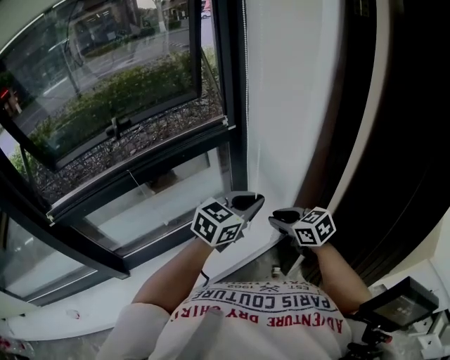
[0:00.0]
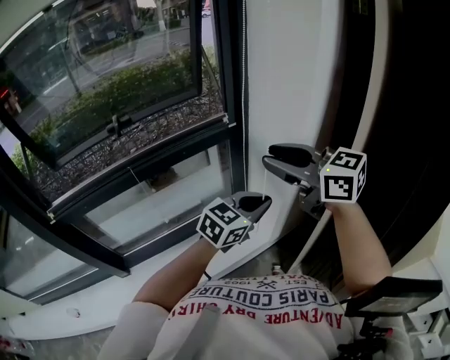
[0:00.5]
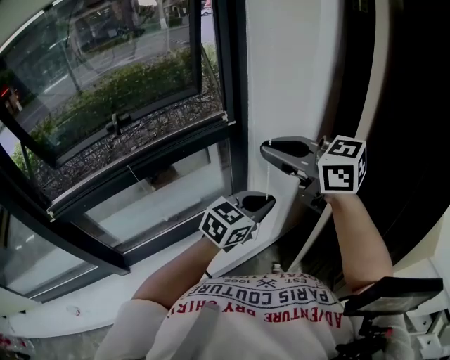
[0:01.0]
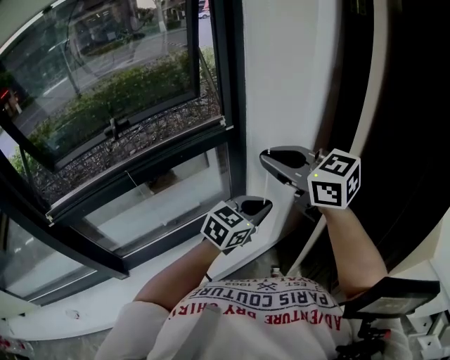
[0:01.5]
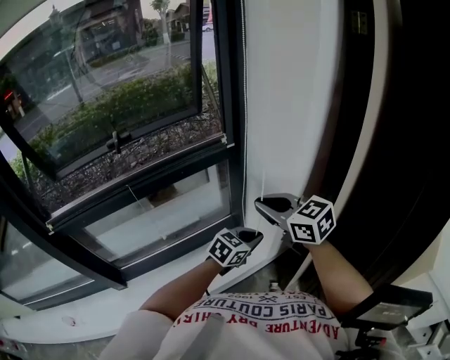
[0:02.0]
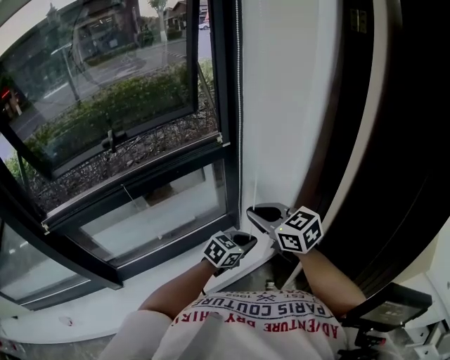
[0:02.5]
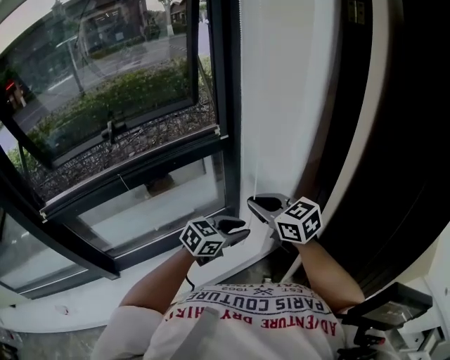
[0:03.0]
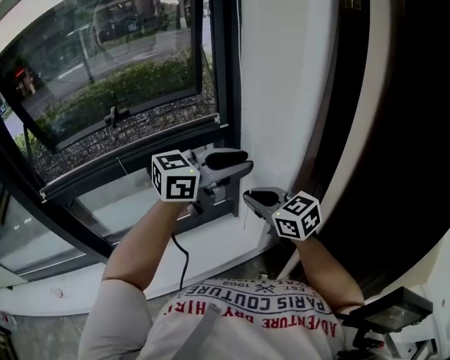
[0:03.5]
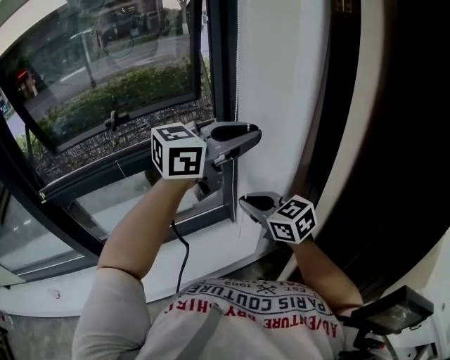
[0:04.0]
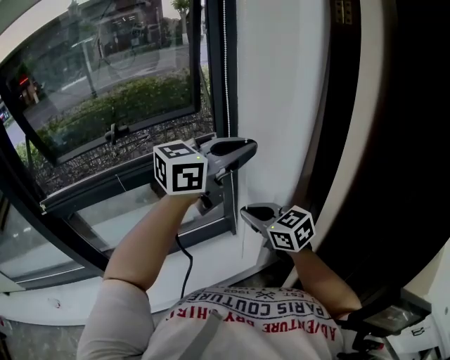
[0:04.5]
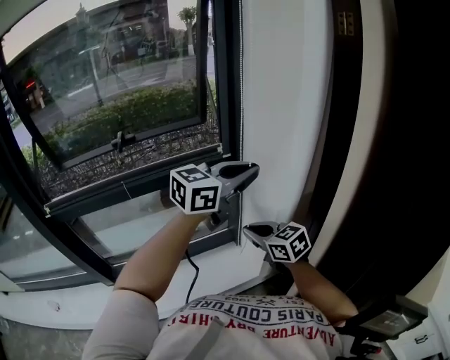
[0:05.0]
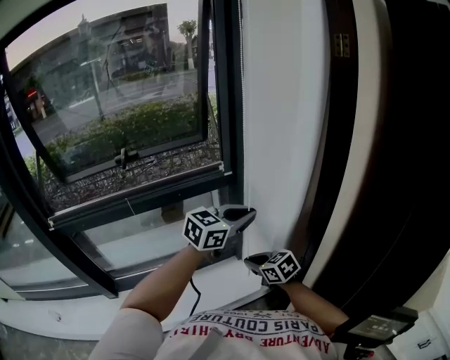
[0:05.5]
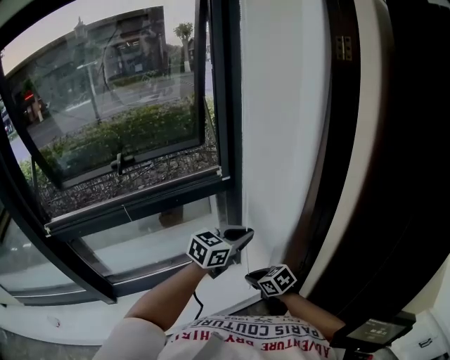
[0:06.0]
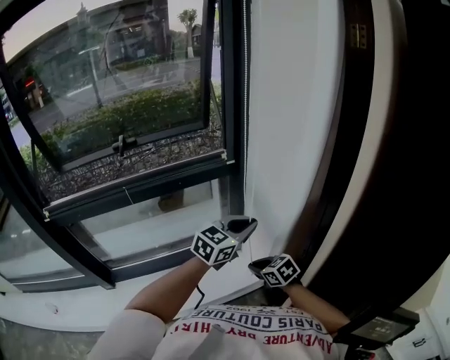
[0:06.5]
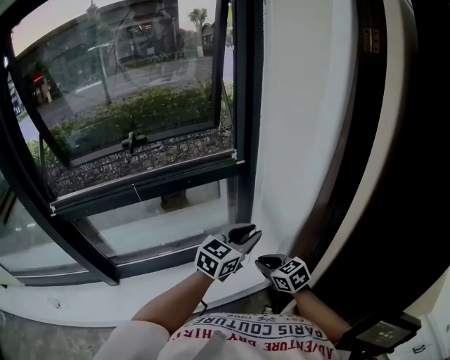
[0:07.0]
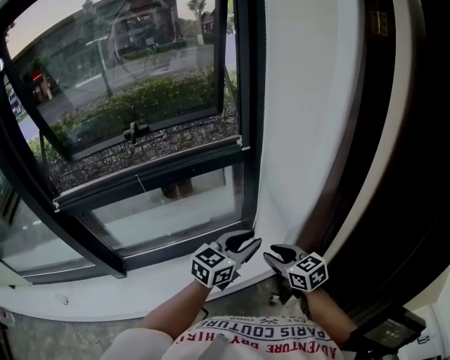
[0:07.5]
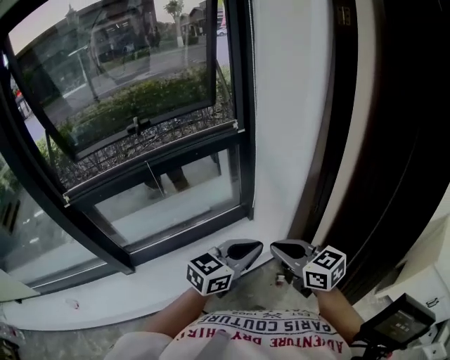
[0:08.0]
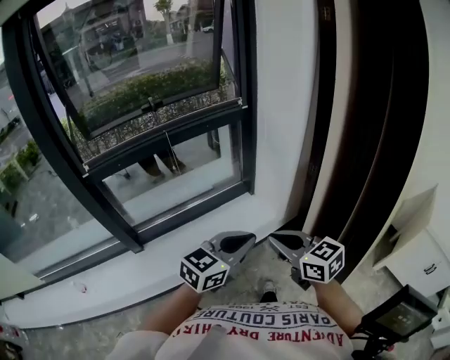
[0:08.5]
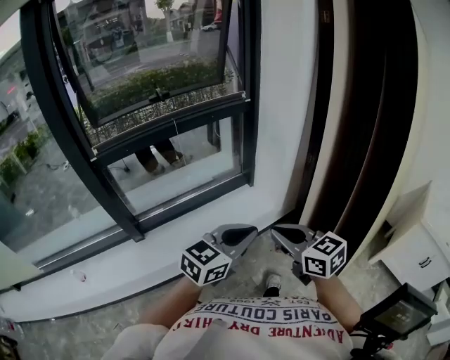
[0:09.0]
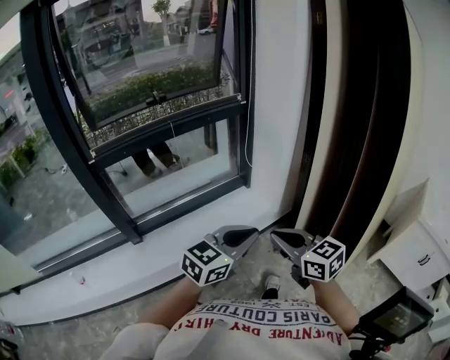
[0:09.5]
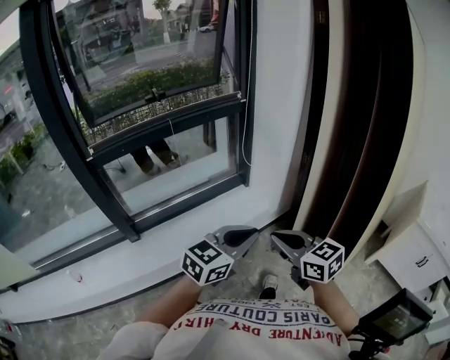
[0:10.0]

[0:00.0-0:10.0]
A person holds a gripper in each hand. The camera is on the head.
0:00.0 to 0:02.0: The left gripper goes approximately 10 cm downward, while the right gripper moves upward, approximately 15 cm.
0:02.0 to 0:04.0: The left gripper shifts approximately 35 cm upward, and tips its fingers upward by approximately 30 degrees.
0:04.0 to 0:06.0: Both grippers move downward, approximately 20 cm. The right gripper swivels roughly 30 degrees.
0:06.0 to 0:08.0: The left gripper goes some 25 cm backward, and opens, then closes again, while the right gripper moves upward and backward, approximately 25 cm, swivels about 30 degrees, and opens and closes again.
0:08.0 to 0:10.0: Both grippers move backward, about 25 cm.

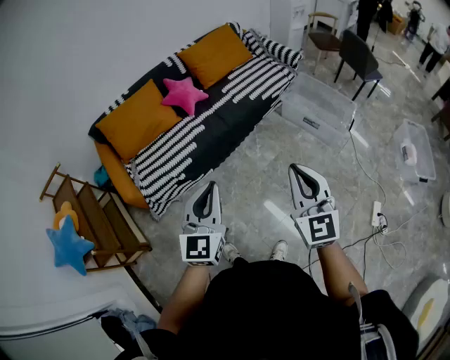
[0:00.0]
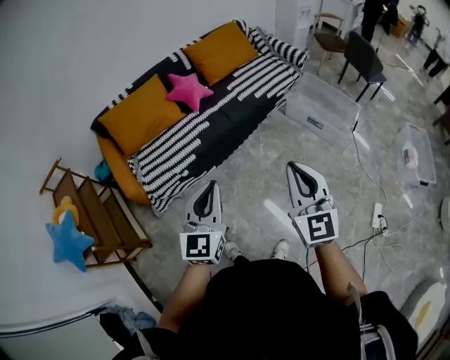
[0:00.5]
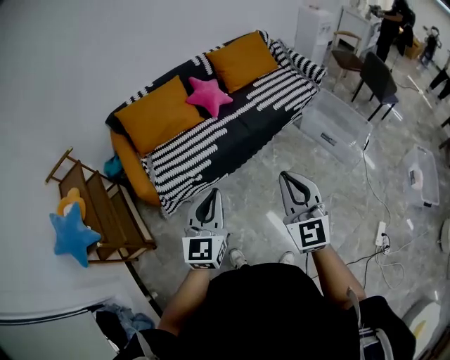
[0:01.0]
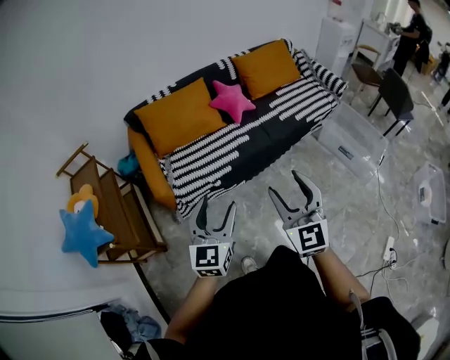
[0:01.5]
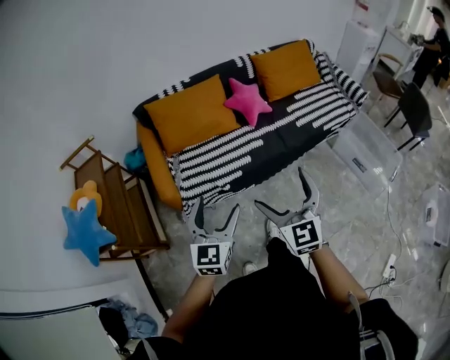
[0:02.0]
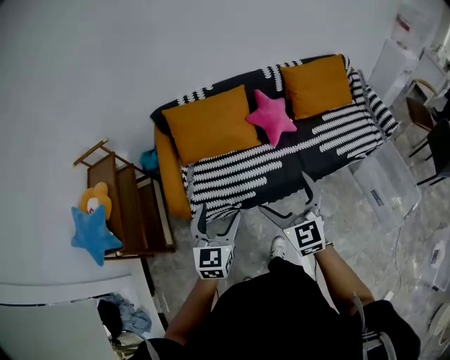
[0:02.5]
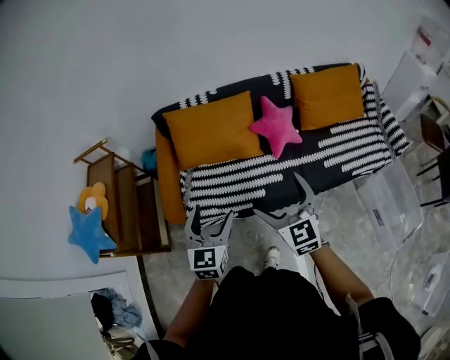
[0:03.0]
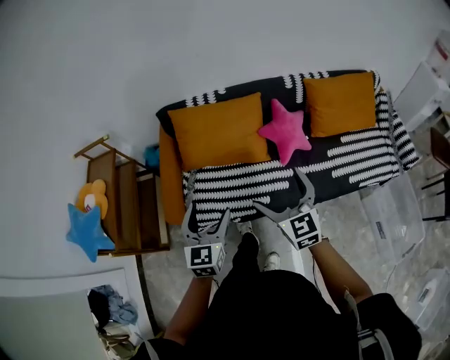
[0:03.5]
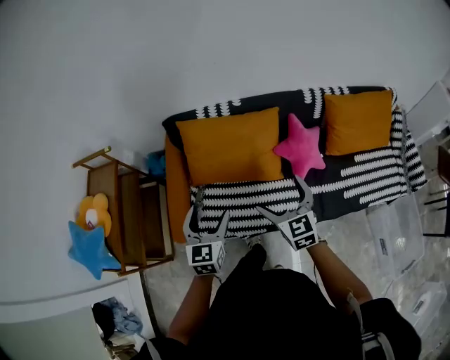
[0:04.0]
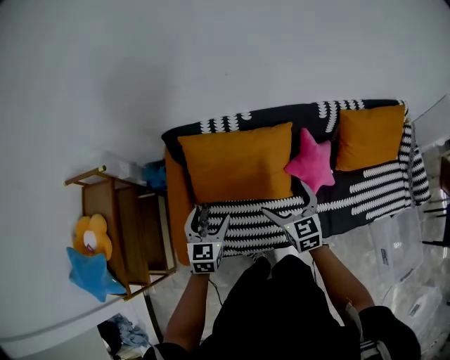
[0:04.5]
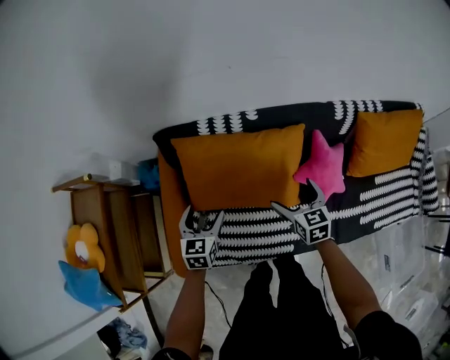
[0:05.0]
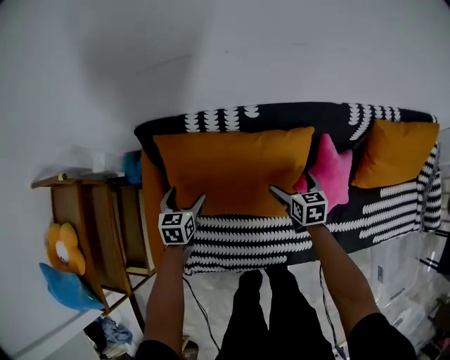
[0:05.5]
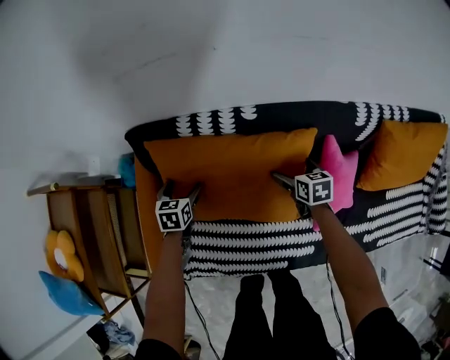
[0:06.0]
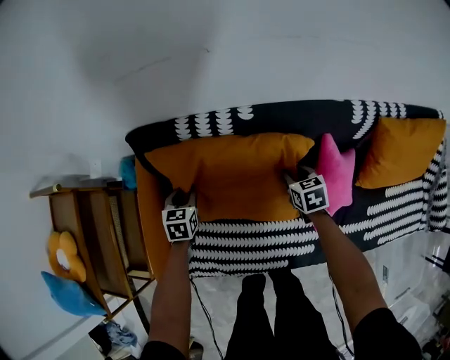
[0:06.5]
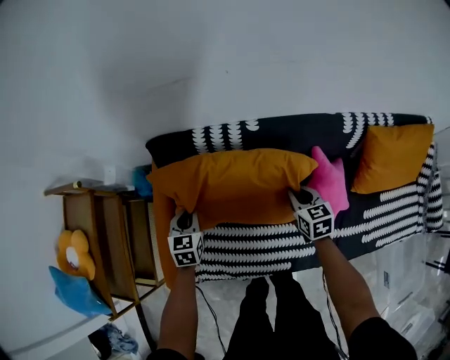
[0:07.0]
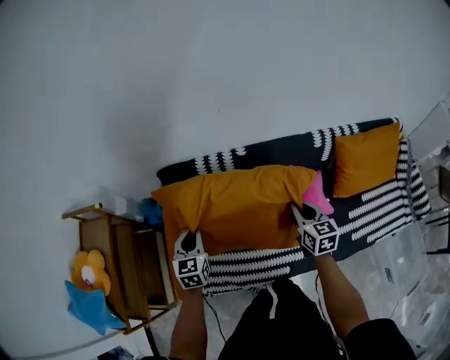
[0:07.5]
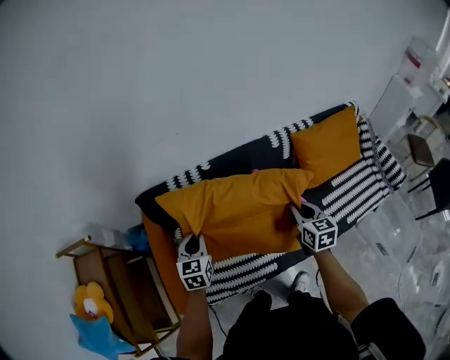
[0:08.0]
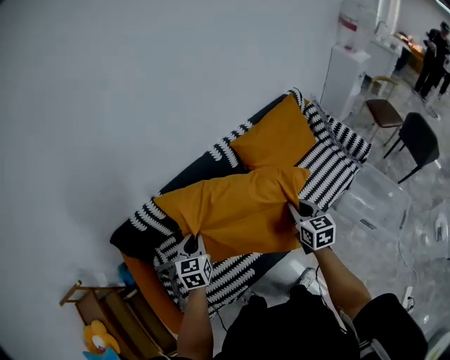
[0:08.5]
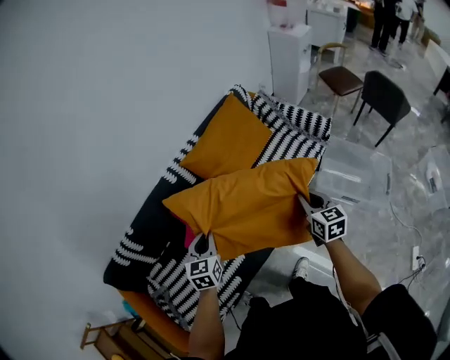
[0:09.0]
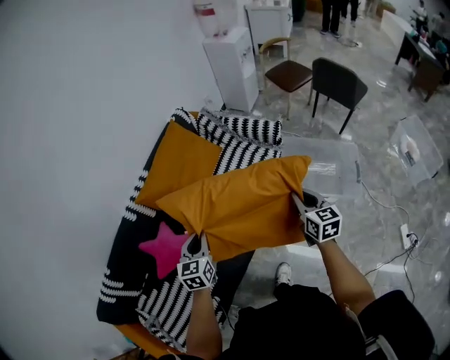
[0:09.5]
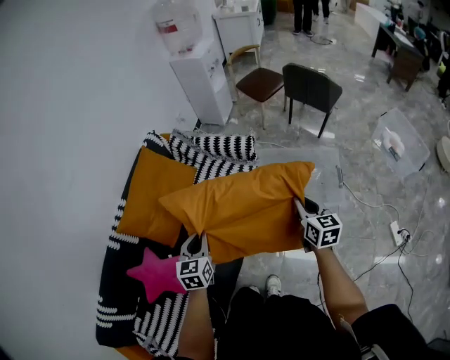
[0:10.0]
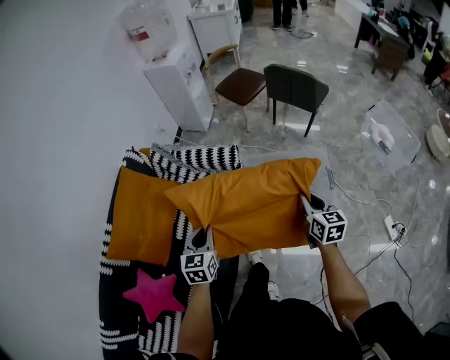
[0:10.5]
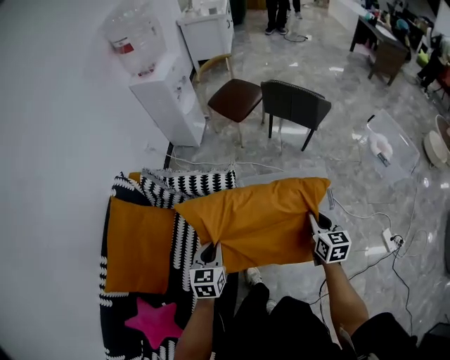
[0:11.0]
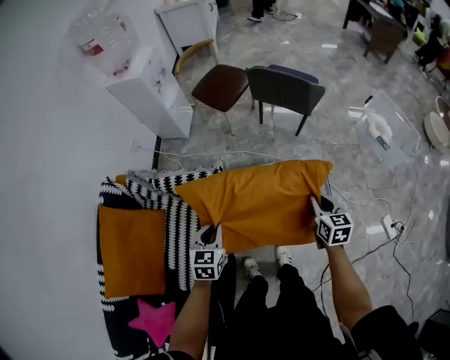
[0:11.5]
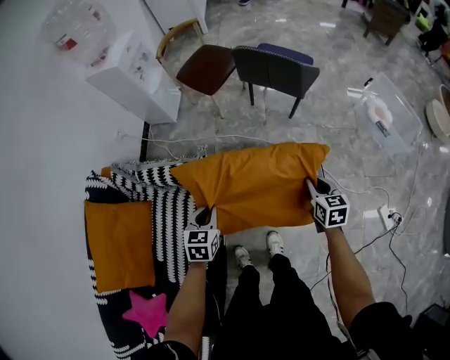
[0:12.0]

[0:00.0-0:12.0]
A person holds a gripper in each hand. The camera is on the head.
0:00.0 to 0:02.0: Both grippers travel together to the left and forward, roughly 30 cm. The right gripper turns by some 20 degrees, and opens its fingers. The left gripper opens its fingers.
0:02.0 to 0:04.0: Both grippers are carried forward, roughly 50 cm. The left gripper changes its angle by about 30 degrees, while the right gripper changes its angle by roughly 30 degrees.
0:04.0 to 0:06.0: Both grippers are carried forward, about 40 cm. Both grippers move downward, some 40 cm. The left gripper changes its angle by about 30 degrees, while the right gripper swivels roughly 40 degrees.
0:06.0 to 0:08.0: The two grippers go roughly 40 cm upward and backward. The left gripper rotates approximately 30 degrees, and closes up, while the right gripper rotates some 30 degrees, and closes.
0:08.0 to 0:10.0: The pair of grippers is taken roughly 90 cm. The left gripper swivels approximately 50 degrees, while the right gripper swivels approximately 60 degrees.
0:10.0 to 0:12.0: The two grippers travel together, forward and to the right, some 50 cm. The left gripper turns by roughly 30 degrees. Meanwhile the right gripper travels downward by approximately 15 cm, and rotates roughly 20 degrees.

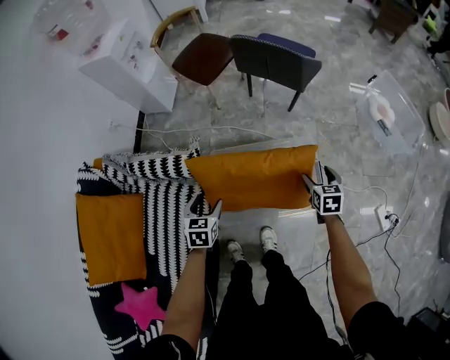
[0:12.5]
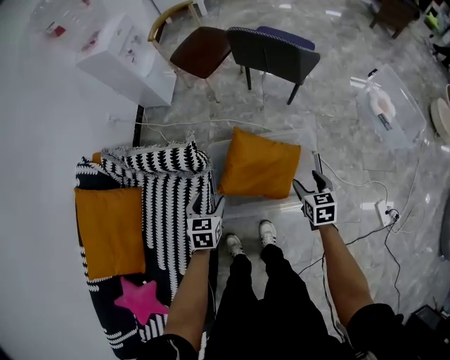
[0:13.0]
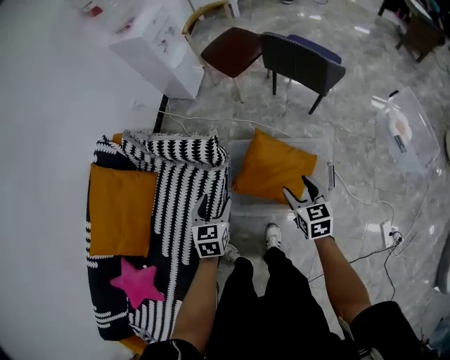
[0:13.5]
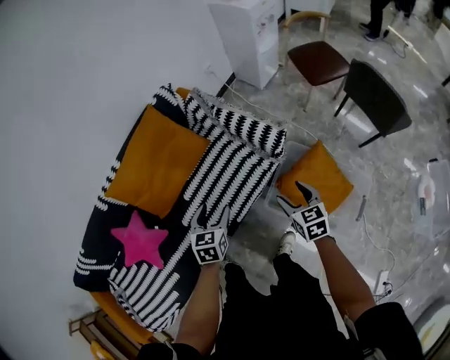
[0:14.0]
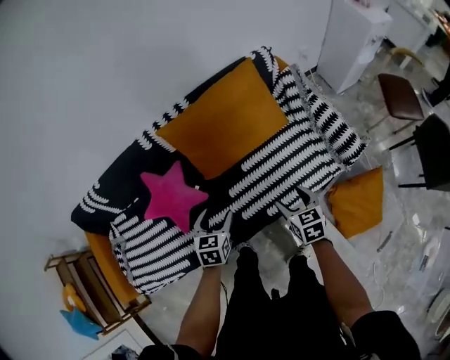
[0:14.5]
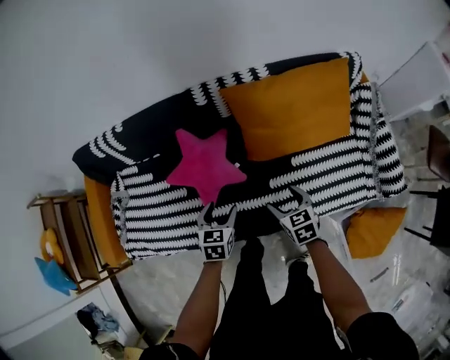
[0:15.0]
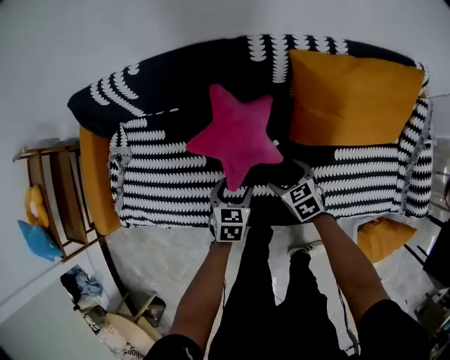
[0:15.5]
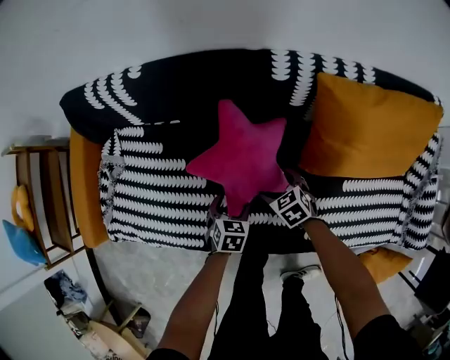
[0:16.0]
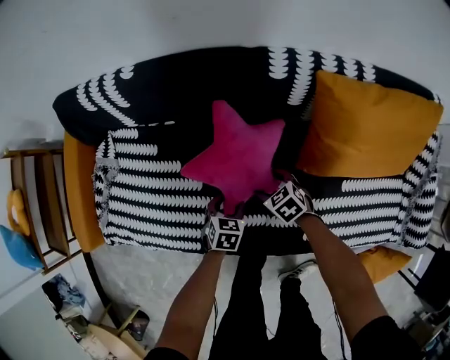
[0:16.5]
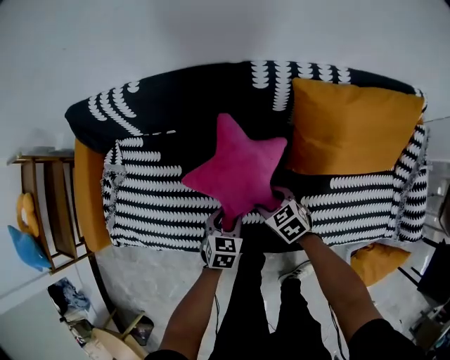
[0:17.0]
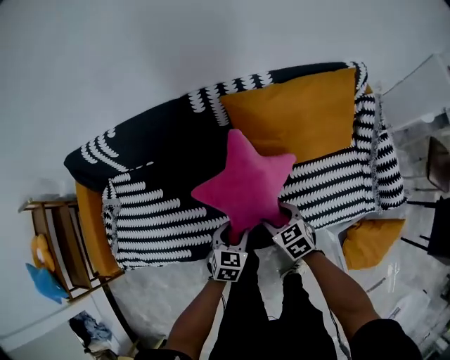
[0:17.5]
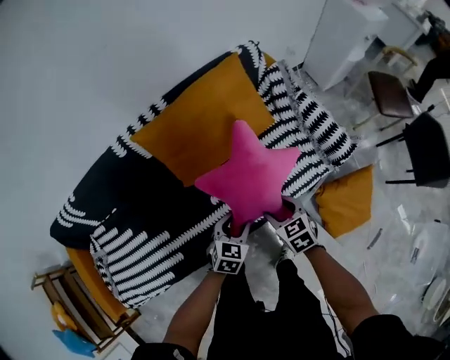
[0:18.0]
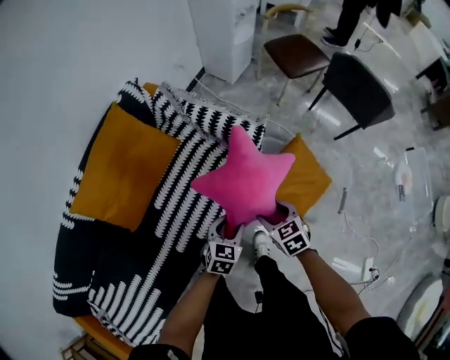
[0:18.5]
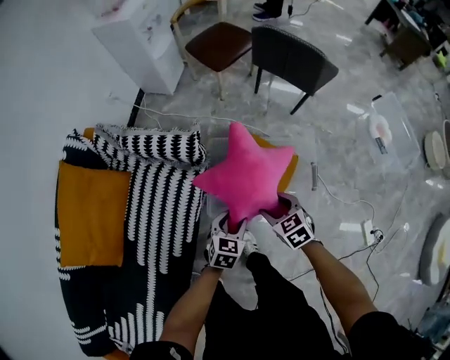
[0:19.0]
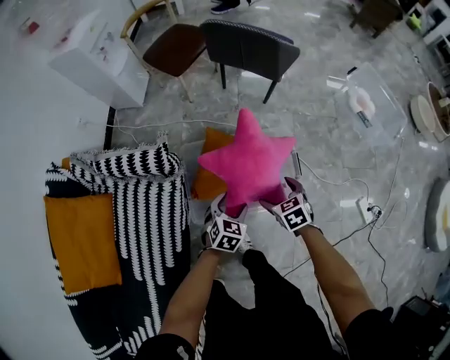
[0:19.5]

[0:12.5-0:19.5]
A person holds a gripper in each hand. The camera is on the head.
0:12.5 to 0:14.5: Both grippers are carried some 70 cm. The left gripper turns by roughly 60 degrees, while the right gripper turns by some 70 degrees.
0:14.5 to 0:16.0: The left gripper changes place by approximately 50 cm, and swivels roughly 30 degrees. Meanwhile the right gripper moves some 60 cm, and swivels about 50 degrees.
0:16.0 to 0:17.5: The left gripper is displaced upward, to the right and backward by about 25 cm, and changes its angle by about 20 degrees; the right gripper shifts approximately 30 cm upward, backward and to the right.
0:17.5 to 0:19.5: Both grippers are carried about 90 cm. The left gripper changes its angle by approximately 80 degrees, while the right gripper rotates about 80 degrees, and opens.
